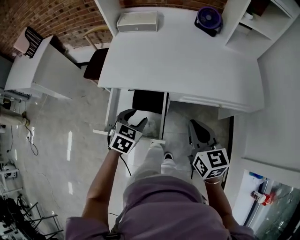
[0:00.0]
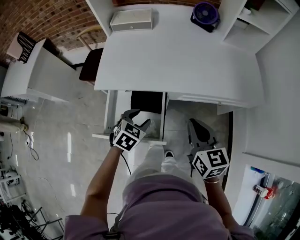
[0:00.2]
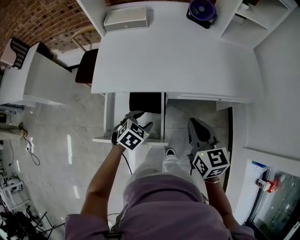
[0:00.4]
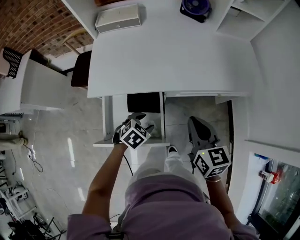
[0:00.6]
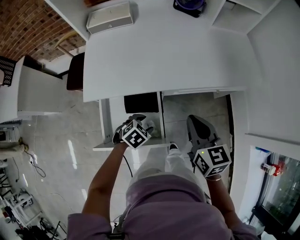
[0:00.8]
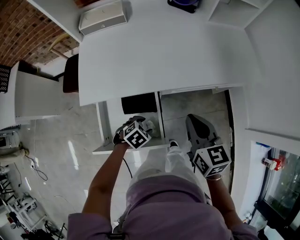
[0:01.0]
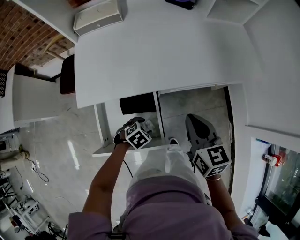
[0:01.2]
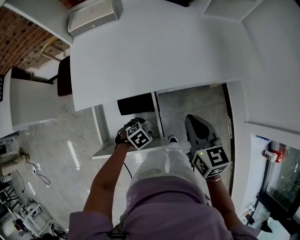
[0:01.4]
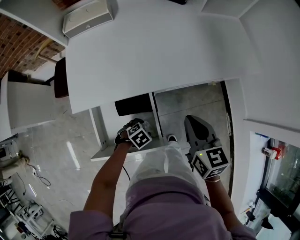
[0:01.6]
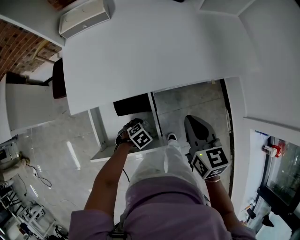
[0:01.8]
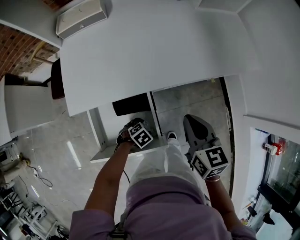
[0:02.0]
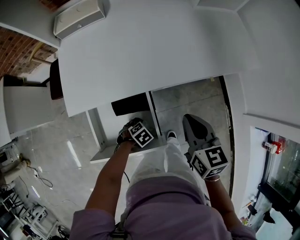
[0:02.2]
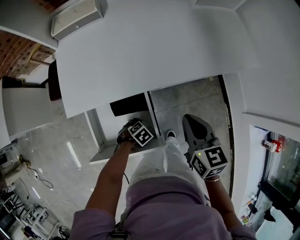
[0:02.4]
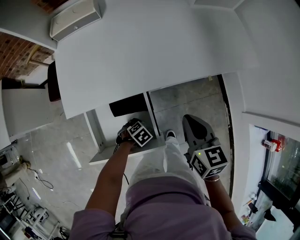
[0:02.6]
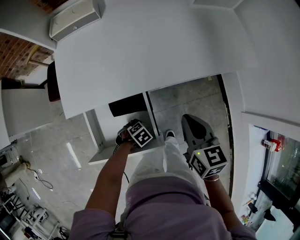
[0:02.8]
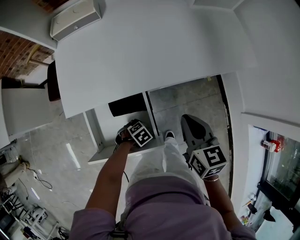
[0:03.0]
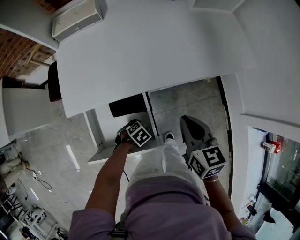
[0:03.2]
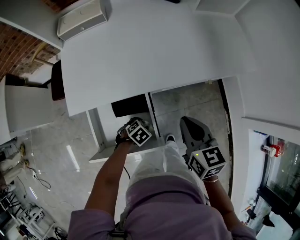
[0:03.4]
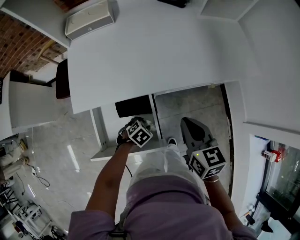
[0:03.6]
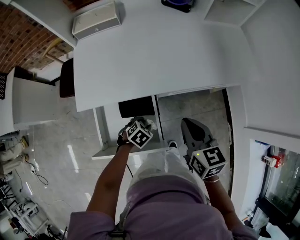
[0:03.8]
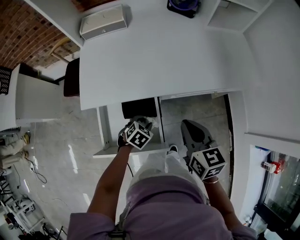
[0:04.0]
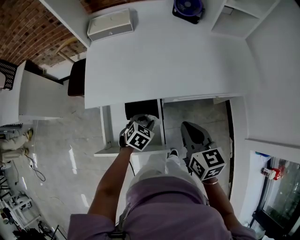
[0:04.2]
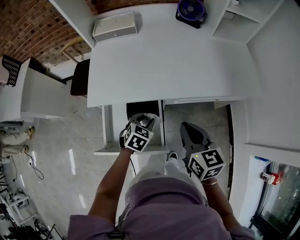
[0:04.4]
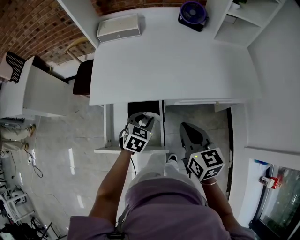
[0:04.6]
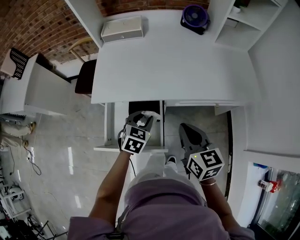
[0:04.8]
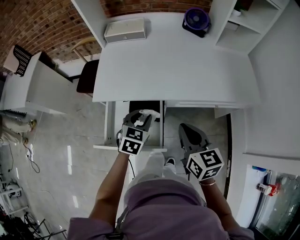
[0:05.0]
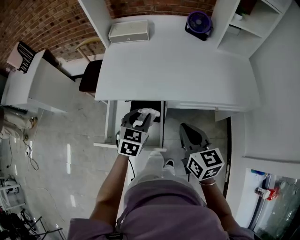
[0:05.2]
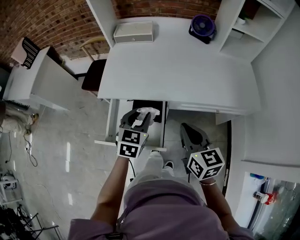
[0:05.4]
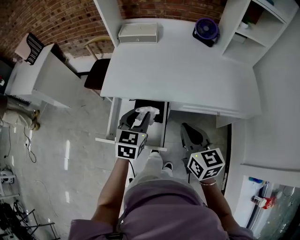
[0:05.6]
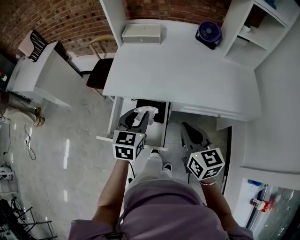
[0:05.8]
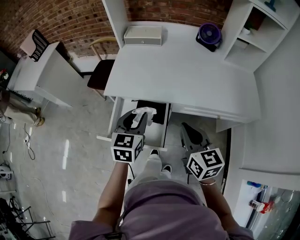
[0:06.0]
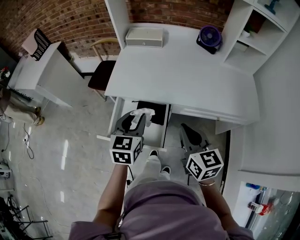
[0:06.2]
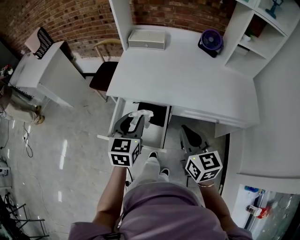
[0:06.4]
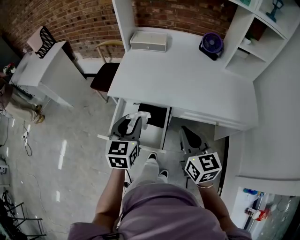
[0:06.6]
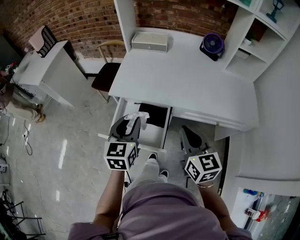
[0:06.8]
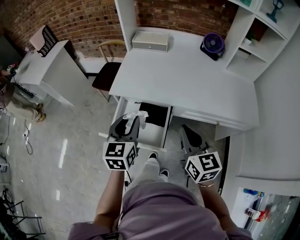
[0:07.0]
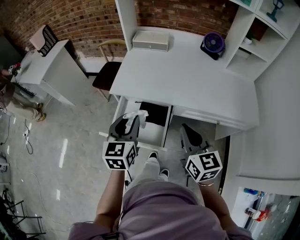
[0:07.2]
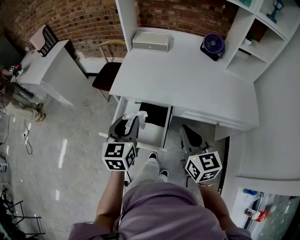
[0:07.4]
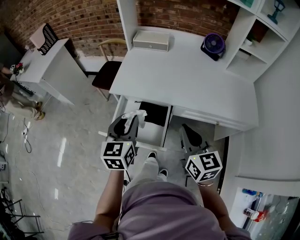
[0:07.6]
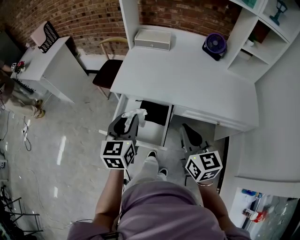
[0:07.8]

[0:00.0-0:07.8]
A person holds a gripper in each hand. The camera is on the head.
0:00.0 to 0:01.6: The right gripper is displaced downward by approximately 5 cm, and swivels roughly 20 degrees. Meanwhile the left gripper moves downward, about 20 cm, and turns by approximately 50 degrees.
0:01.6 to 0:03.2: The left gripper closes its fingers.
0:03.2 to 0:04.6: The right gripper changes place by about 5 cm; the left gripper goes about 20 cm upward, and turns by about 50 degrees.
0:04.6 to 0:06.2: The left gripper moves upward and to the left, about 20 cm, and changes its angle by roughly 40 degrees. The right gripper heads upward, covering approximately 5 cm.
0:06.2 to 0:07.8: The left gripper moves roughly 5 cm.

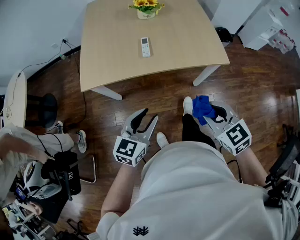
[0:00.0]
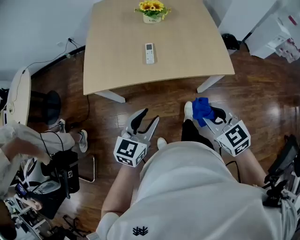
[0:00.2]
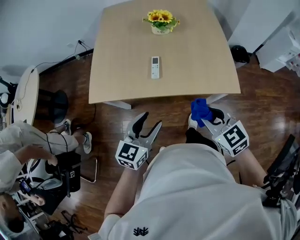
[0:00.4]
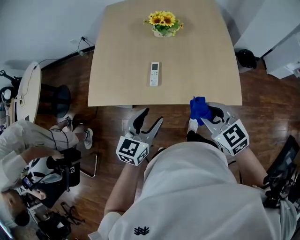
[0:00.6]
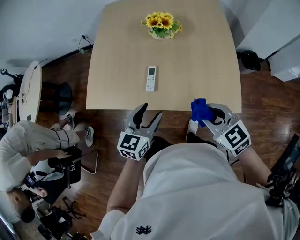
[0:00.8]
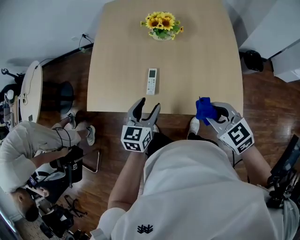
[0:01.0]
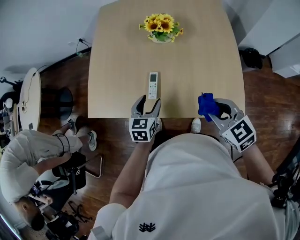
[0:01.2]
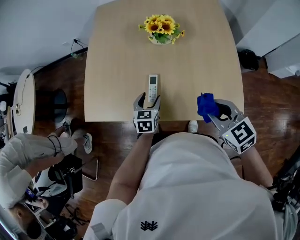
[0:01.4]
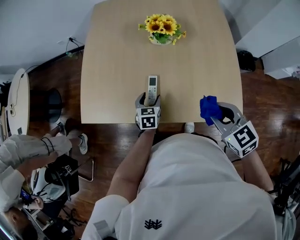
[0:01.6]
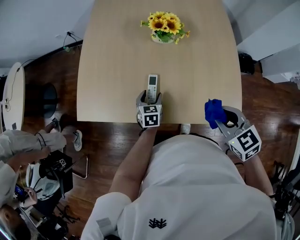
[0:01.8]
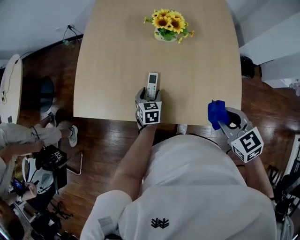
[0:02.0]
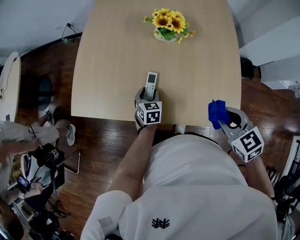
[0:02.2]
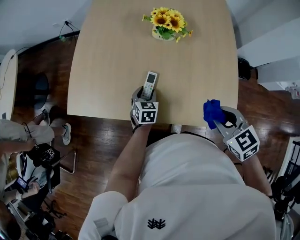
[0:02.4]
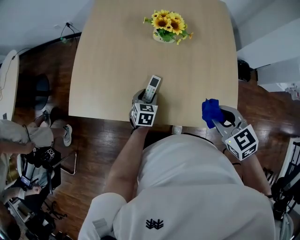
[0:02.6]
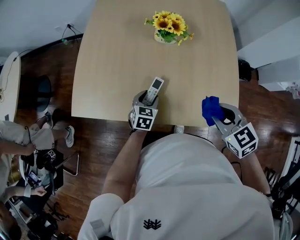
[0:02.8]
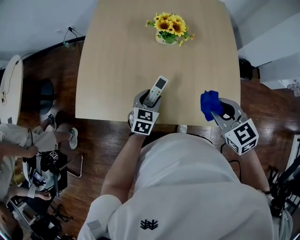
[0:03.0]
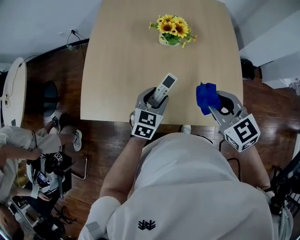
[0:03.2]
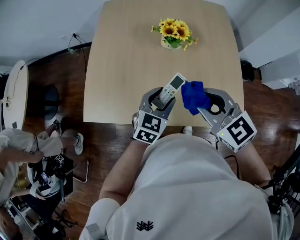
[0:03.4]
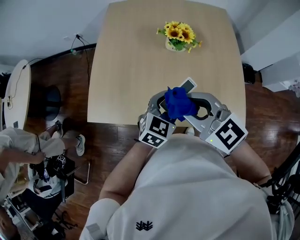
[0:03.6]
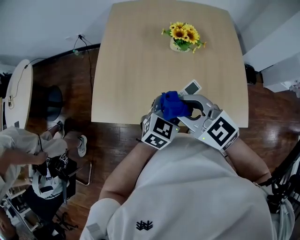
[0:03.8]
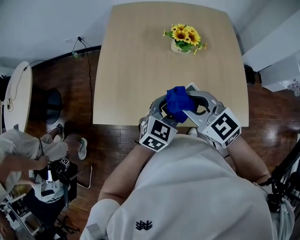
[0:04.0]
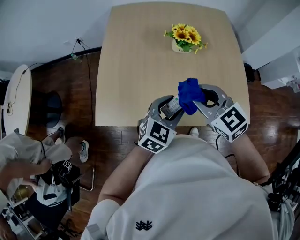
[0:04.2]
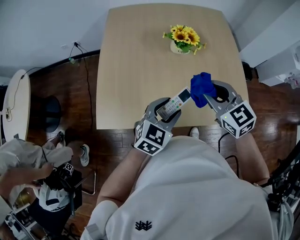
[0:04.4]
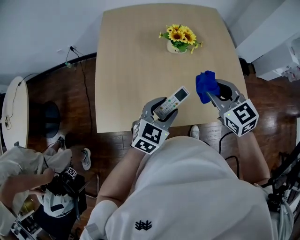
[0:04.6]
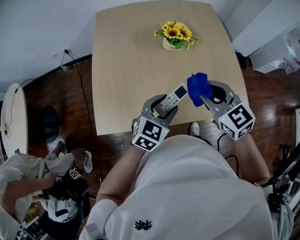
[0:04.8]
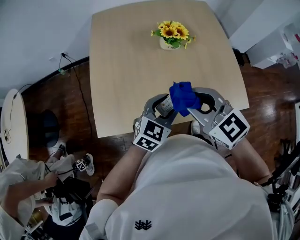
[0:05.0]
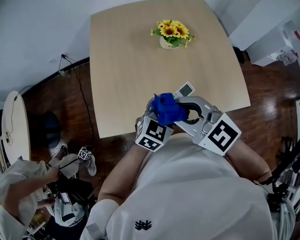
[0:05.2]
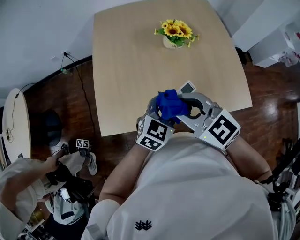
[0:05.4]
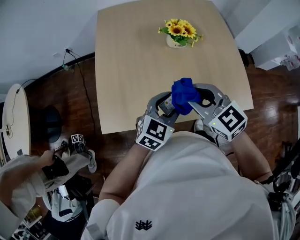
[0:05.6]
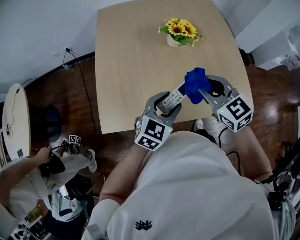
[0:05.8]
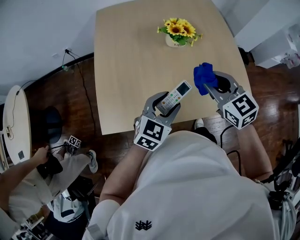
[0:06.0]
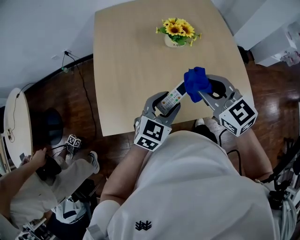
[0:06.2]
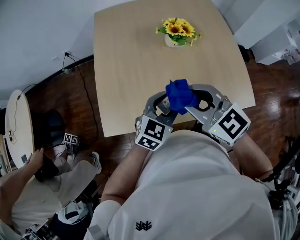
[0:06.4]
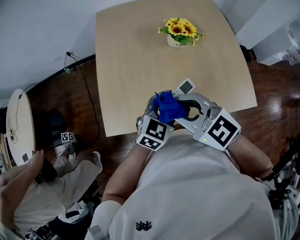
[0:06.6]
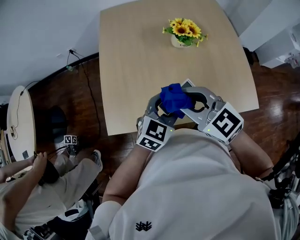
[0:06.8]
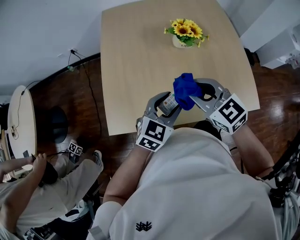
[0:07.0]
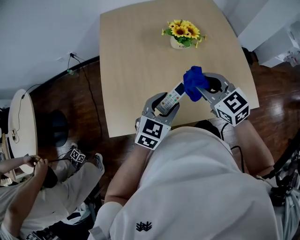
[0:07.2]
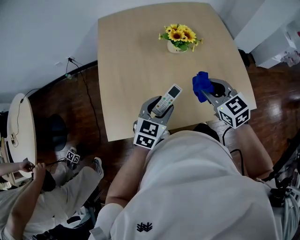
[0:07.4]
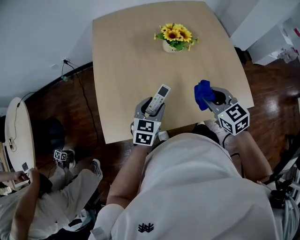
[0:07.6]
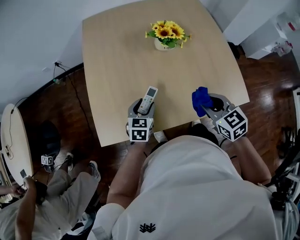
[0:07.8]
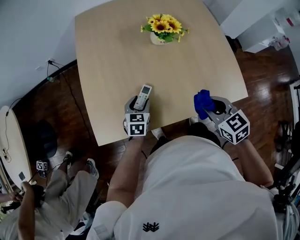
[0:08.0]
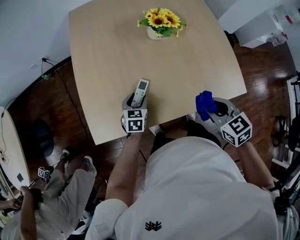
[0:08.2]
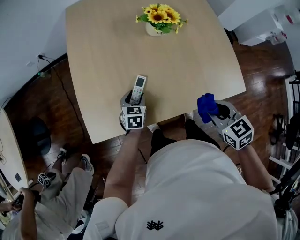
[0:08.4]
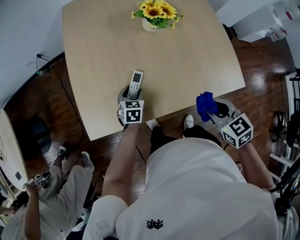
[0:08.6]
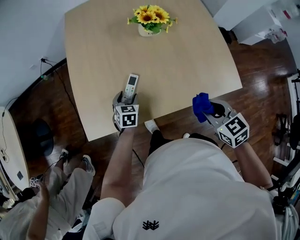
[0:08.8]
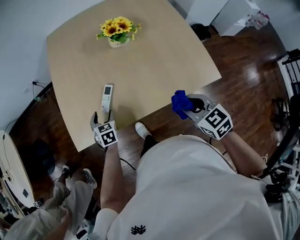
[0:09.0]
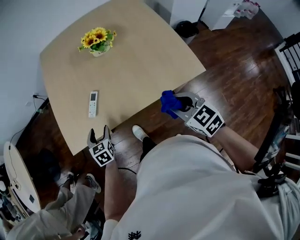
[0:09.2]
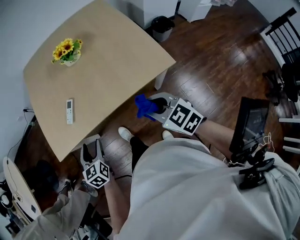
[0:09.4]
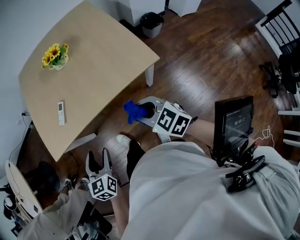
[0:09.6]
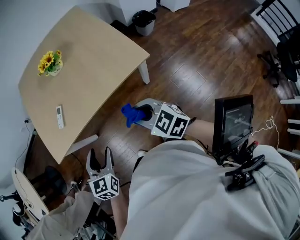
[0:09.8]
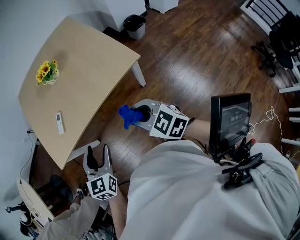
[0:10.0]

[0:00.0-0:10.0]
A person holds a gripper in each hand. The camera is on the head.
0:00.0 to 0:01.4: The right gripper heads forward and to the right, covering approximately 30 cm. The left gripper goes about 35 cm forward and downward, turns by roughly 30 degrees, and opens.
0:01.4 to 0:02.8: The left gripper moves downward, approximately 5 cm.
0:02.8 to 0:04.2: The right gripper travels to the left by approximately 20 cm, while the left gripper shifts approximately 20 cm upward, and swivels approximately 30 degrees.
0:04.2 to 0:05.8: The right gripper moves left and right over roughly 15 cm, changing direction 2 times.
0:05.8 to 0:07.2: The right gripper moves roughly 15 cm to the left and comes back.
0:07.2 to 0:08.6: The left gripper is displaced downward by some 25 cm, and swivels about 30 degrees. Meanwhile the right gripper shifts roughly 20 cm backward, to the right and downward, and turns by about 30 degrees.
0:08.6 to 0:10.0: The left gripper is displaced backward, upward and to the right by roughly 40 cm, and swivels approximately 20 degrees, while the right gripper travels backward and to the right by roughly 25 cm.

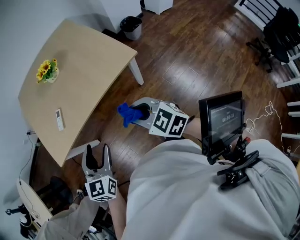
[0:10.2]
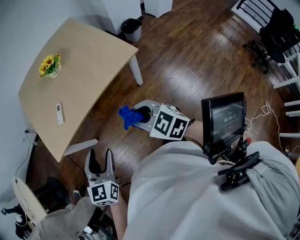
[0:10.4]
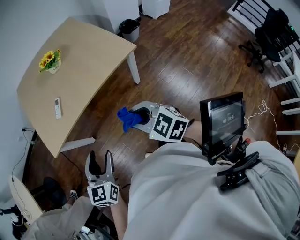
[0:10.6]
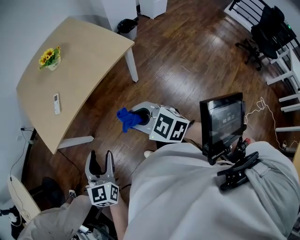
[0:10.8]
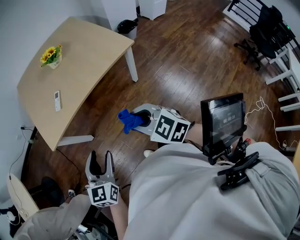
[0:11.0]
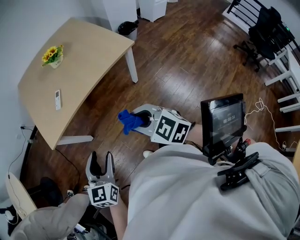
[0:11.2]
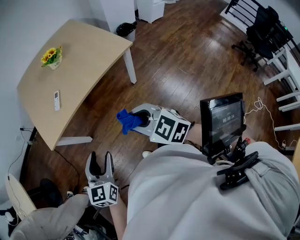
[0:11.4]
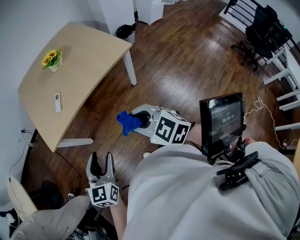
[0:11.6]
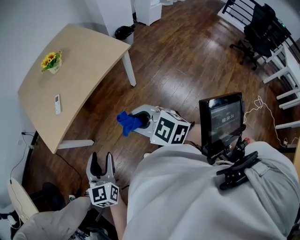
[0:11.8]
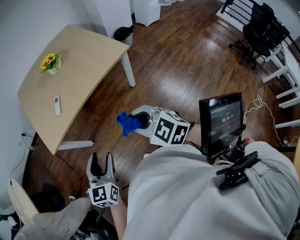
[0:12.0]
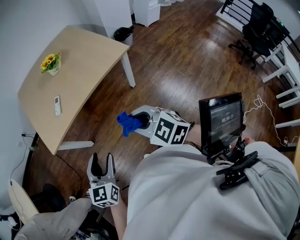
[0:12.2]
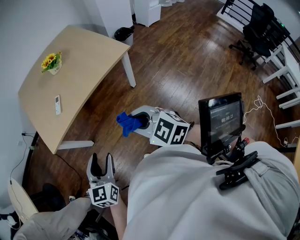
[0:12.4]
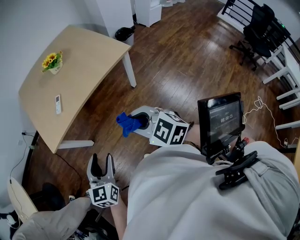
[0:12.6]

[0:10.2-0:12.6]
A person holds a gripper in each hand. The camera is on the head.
0:10.2 to 0:11.4: Both grippers move backward and to the left, about 20 cm.
0:11.4 to 0:12.6: Neither gripper changes place.

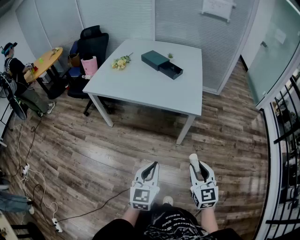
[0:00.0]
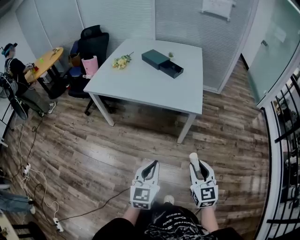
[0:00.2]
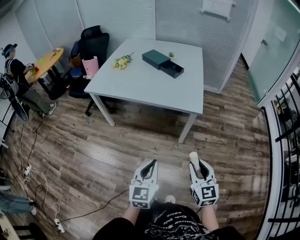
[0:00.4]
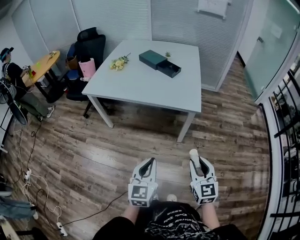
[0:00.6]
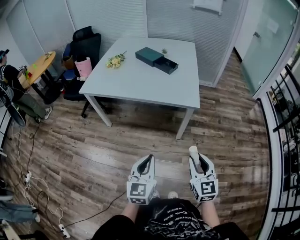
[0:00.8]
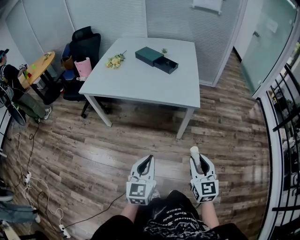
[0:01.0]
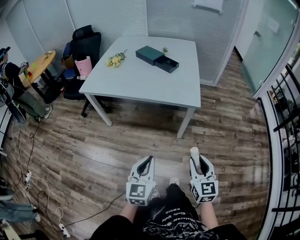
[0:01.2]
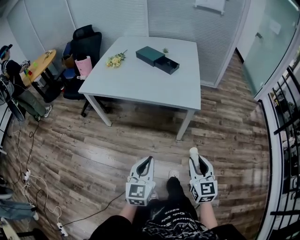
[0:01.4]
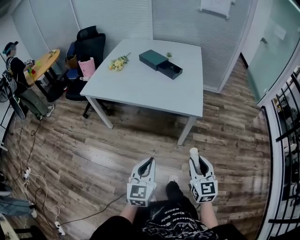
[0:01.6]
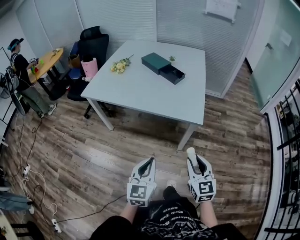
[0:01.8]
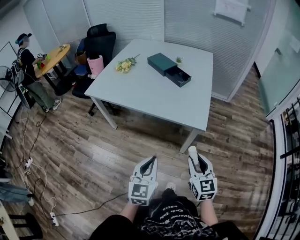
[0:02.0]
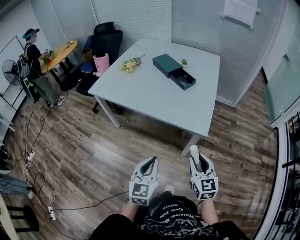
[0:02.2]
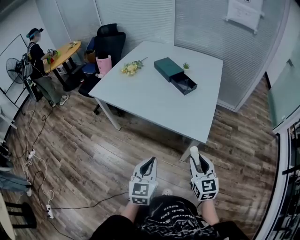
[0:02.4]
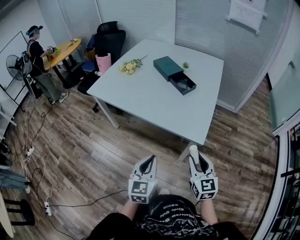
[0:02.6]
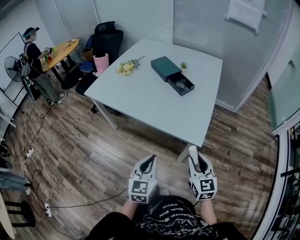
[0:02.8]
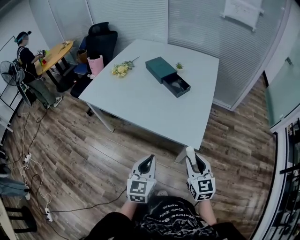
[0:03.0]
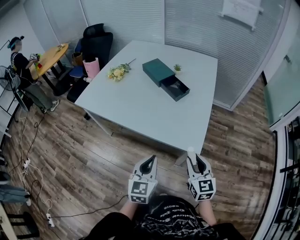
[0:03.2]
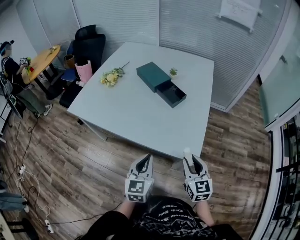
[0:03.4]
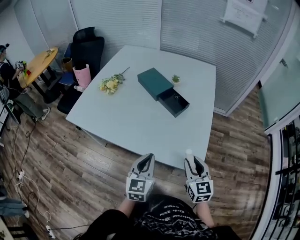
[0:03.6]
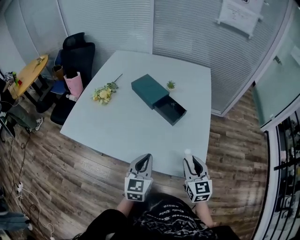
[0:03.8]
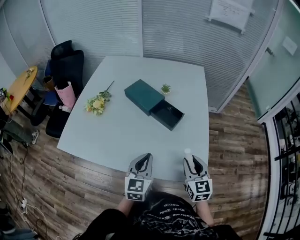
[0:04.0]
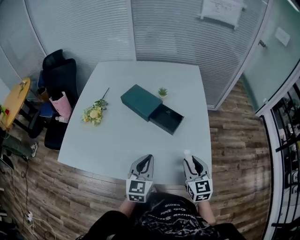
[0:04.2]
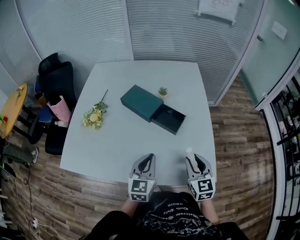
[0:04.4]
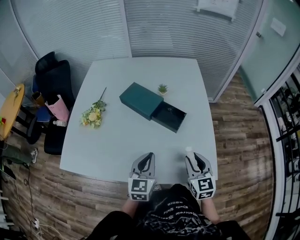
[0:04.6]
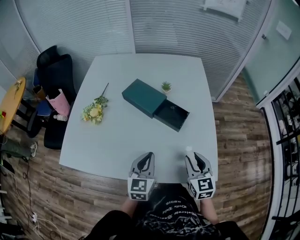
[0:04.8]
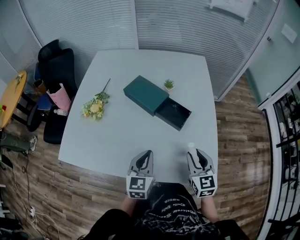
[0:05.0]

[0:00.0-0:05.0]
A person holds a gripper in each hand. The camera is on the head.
0:00.0 to 0:01.6: Both grippers move forward, roughly 5 cm.
0:01.6 to 0:03.4: Both grippers move forward, roughly 35 cm.
0:03.4 to 0:05.0: The two grippers go about 25 cm forward and to the left.
